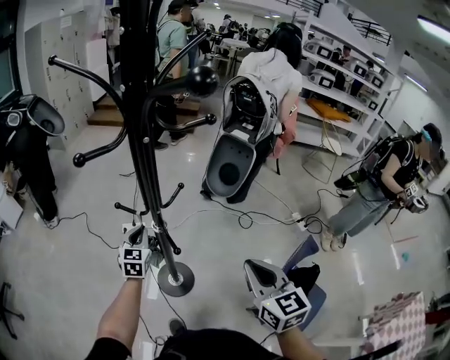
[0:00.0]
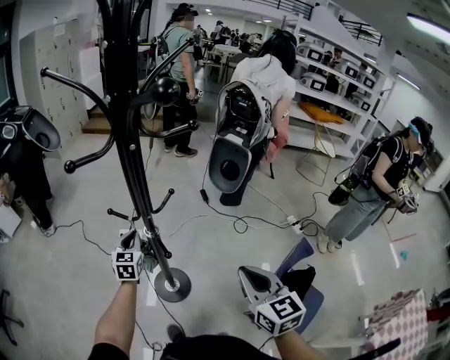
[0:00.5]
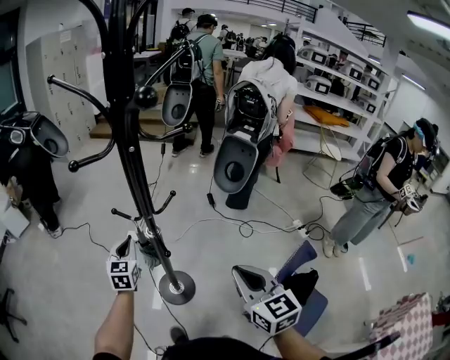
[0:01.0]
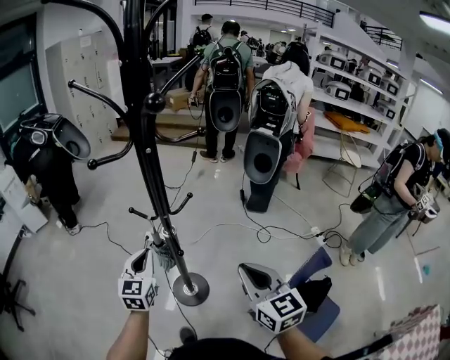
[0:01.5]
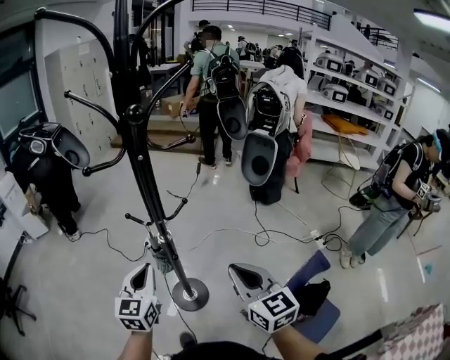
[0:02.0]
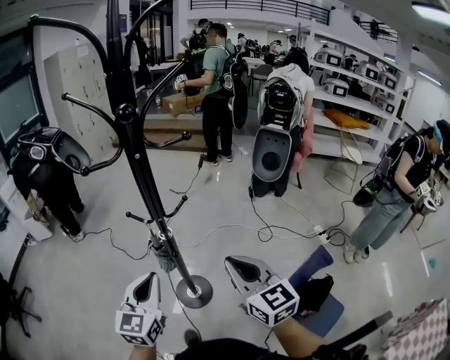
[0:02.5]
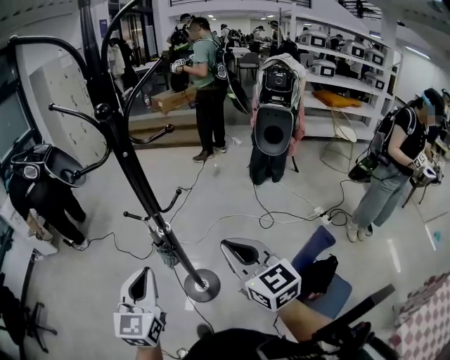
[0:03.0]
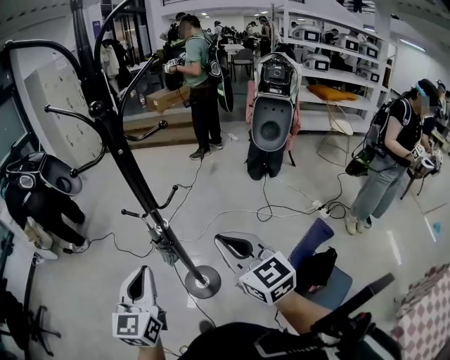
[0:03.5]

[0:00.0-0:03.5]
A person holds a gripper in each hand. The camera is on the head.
0:00.0 to 0:02.0: The left gripper goes roughly 20 cm backward and upward.
0:02.0 to 0:03.5: The left gripper moves upward and backward, some 10 cm, while the right gripper moves upward, roughly 5 cm.

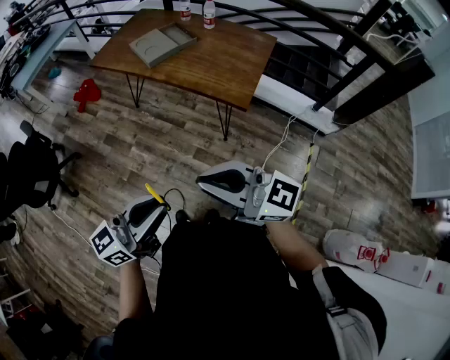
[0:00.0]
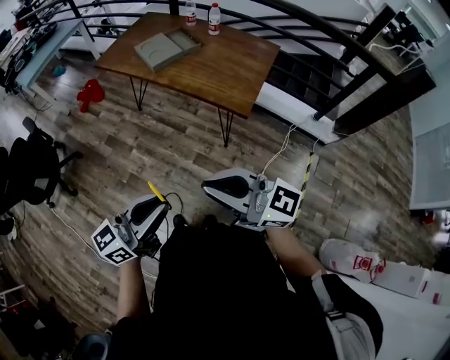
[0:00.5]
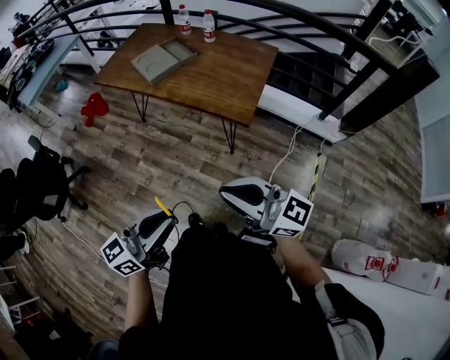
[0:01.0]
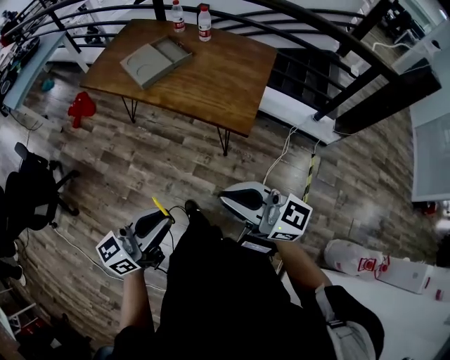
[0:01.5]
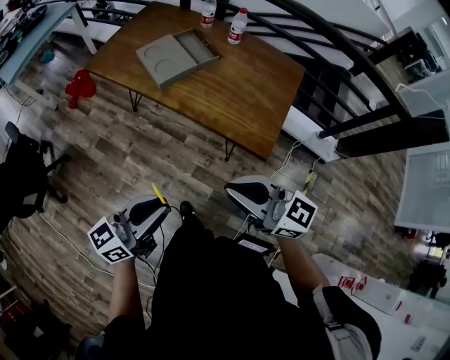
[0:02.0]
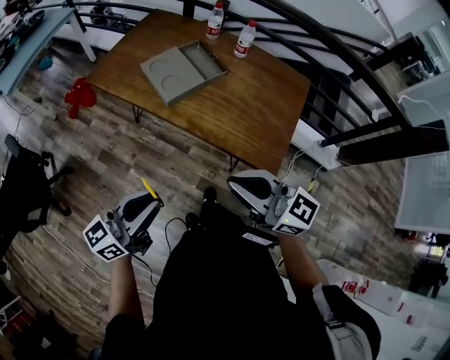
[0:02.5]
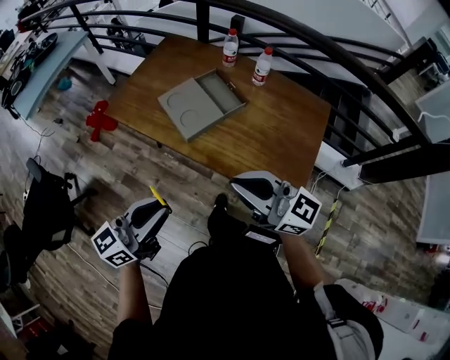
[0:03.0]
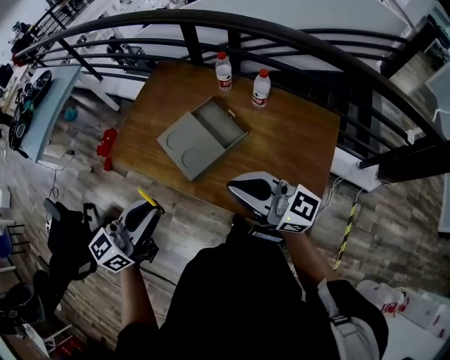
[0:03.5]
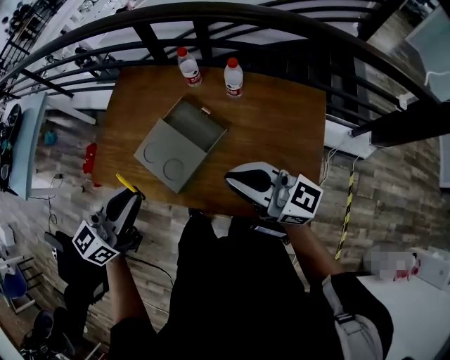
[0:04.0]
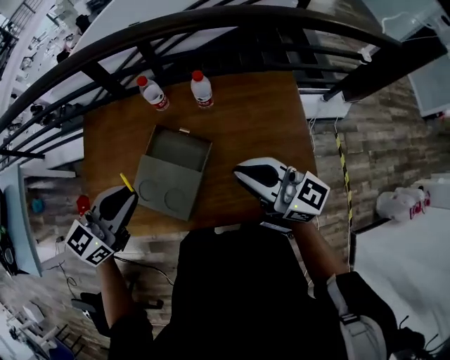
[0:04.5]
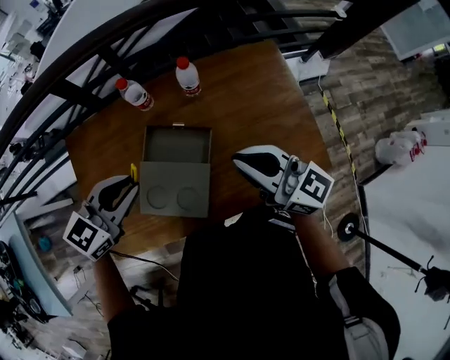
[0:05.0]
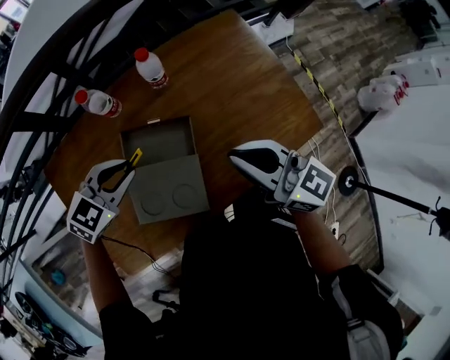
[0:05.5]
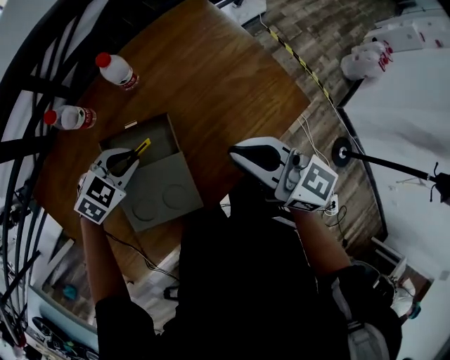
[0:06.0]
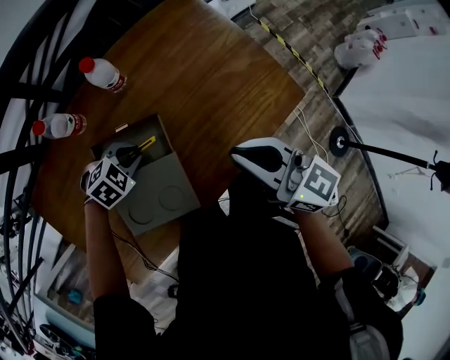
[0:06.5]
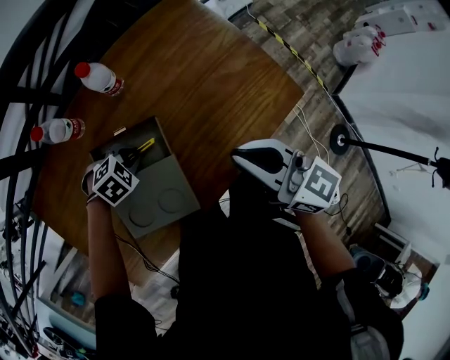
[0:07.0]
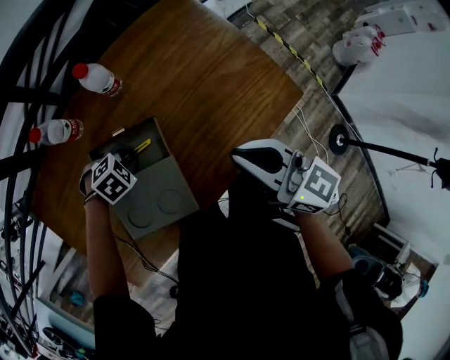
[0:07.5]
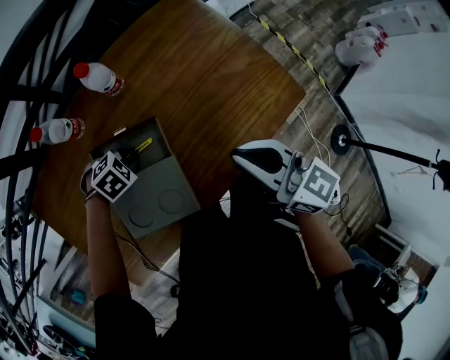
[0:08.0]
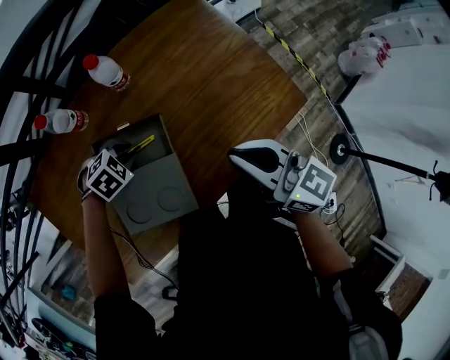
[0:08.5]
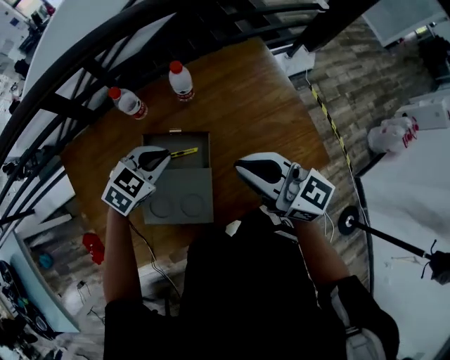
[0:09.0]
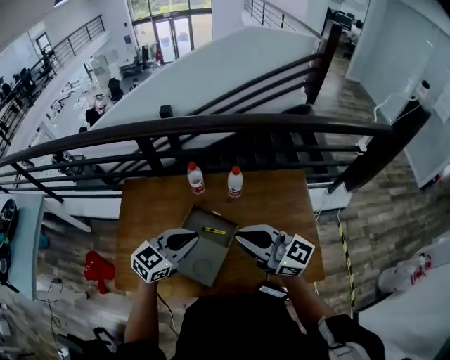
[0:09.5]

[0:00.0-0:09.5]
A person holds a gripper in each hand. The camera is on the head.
0:00.0 to 0:02.0: The grippers both shift forward by approximately 25 cm.
0:02.0 to 0:04.0: The pair of grippers is taken forward, about 40 cm.
0:04.0 to 0:05.5: The right gripper shifts by roughly 10 cm, and swivels roughly 50 degrees, while the left gripper moves about 30 cm, and tips its fingers downward by some 40 degrees.
0:05.5 to 0:07.5: The right gripper changes place by approximately 10 cm, while the left gripper is displaced downward by roughly 20 cm, and tilts its fingers about 30 degrees downward.
0:07.5 to 0:09.5: The right gripper goes roughly 15 cm upward, and rotates approximately 50 degrees, while the left gripper is displaced upward by roughly 30 cm, and tilts its fingers some 60 degrees upward.

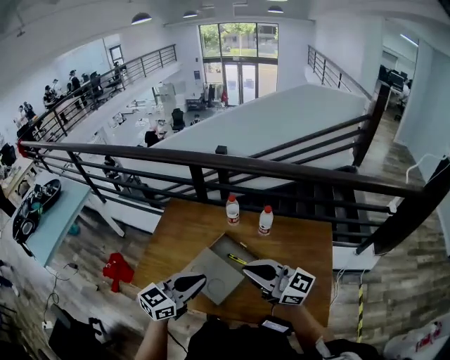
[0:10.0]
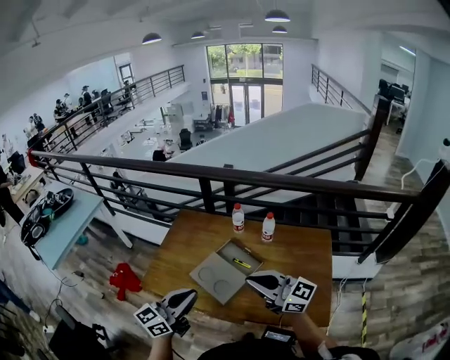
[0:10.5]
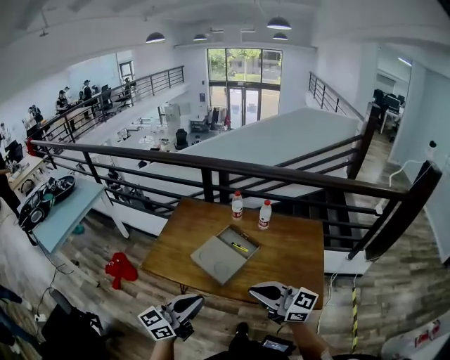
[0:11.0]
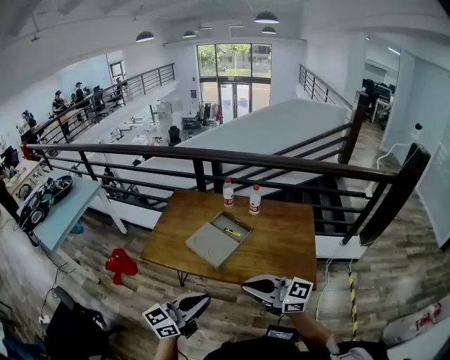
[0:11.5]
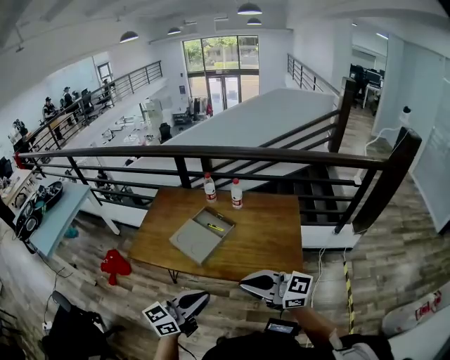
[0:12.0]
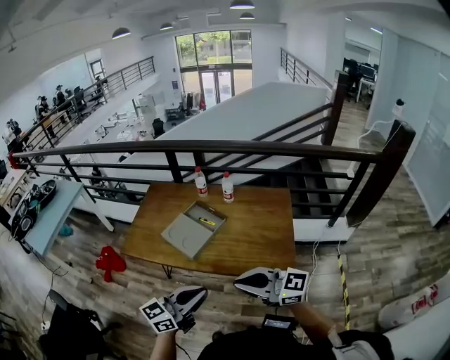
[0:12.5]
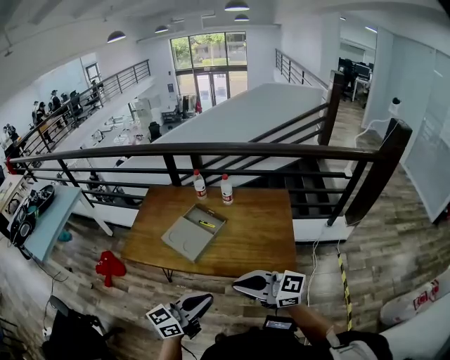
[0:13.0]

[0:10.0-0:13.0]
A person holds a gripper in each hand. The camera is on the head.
0:10.0 to 0:11.5: The grippers both shift backward by approximately 30 cm.
0:11.5 to 0:13.0: The left gripper changes place by about 10 cm; the right gripper moves some 10 cm.

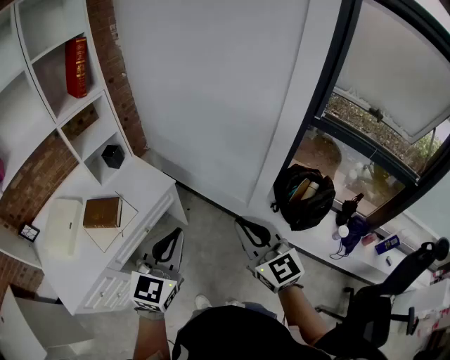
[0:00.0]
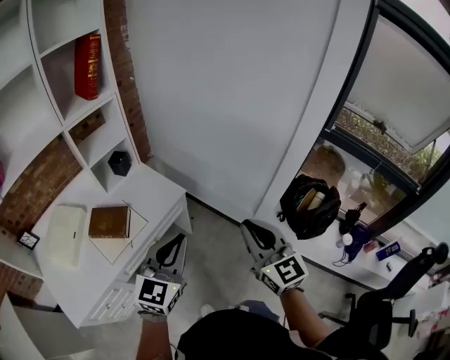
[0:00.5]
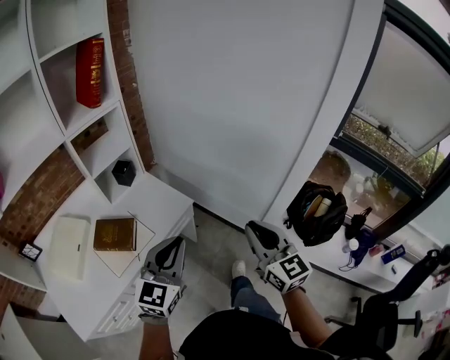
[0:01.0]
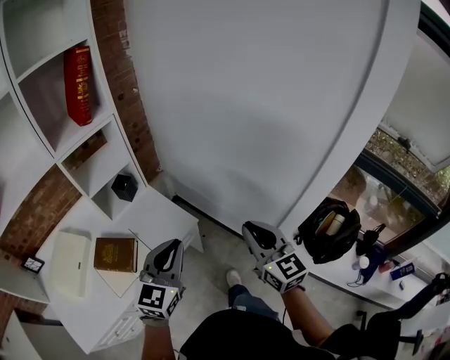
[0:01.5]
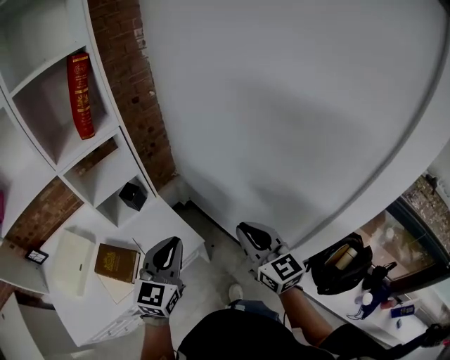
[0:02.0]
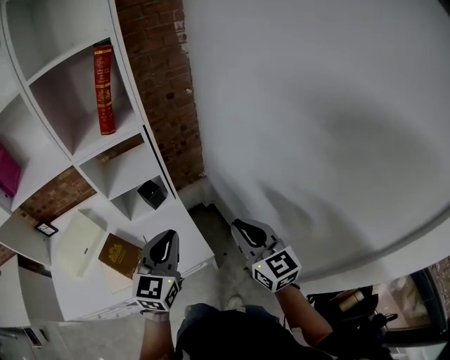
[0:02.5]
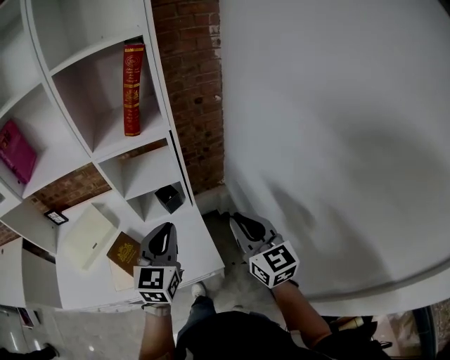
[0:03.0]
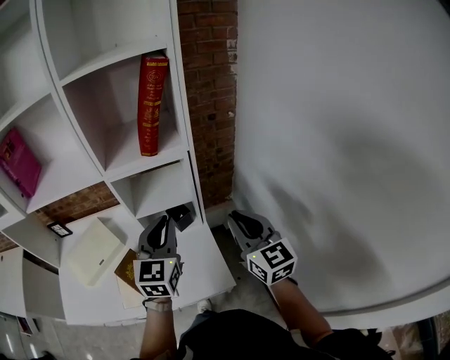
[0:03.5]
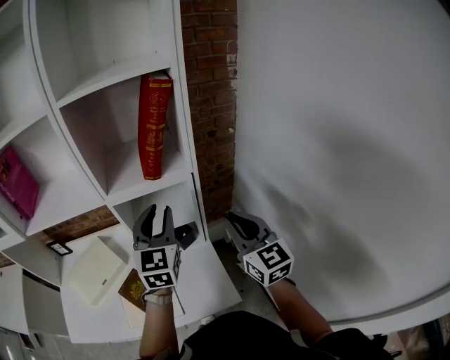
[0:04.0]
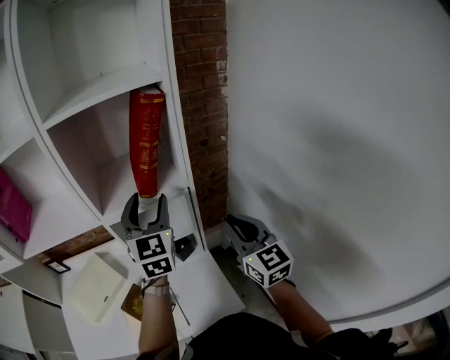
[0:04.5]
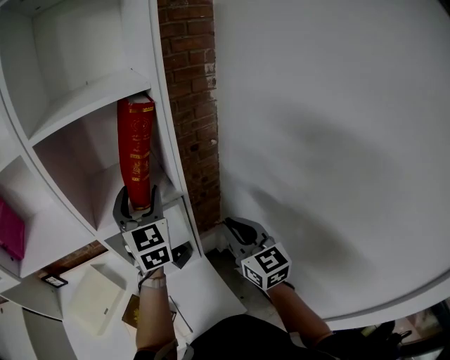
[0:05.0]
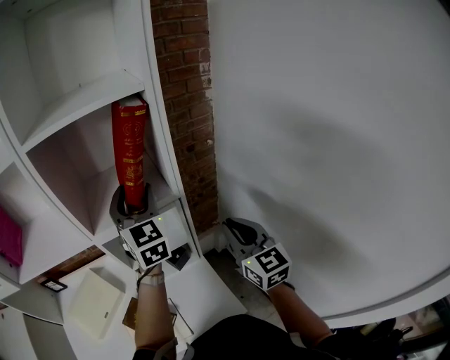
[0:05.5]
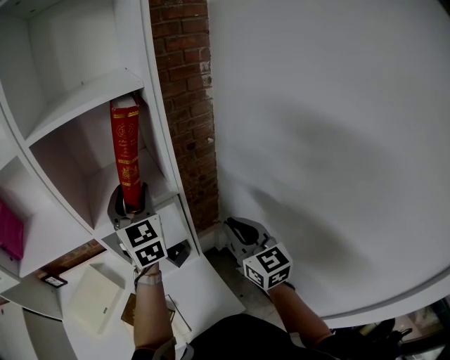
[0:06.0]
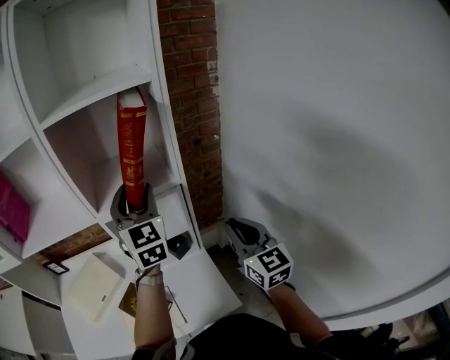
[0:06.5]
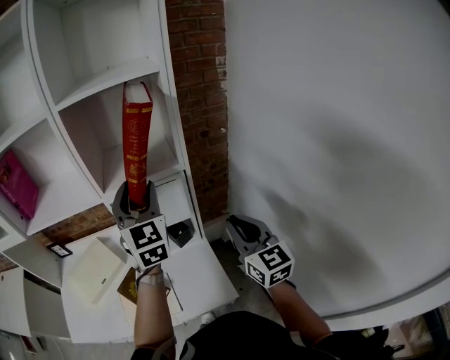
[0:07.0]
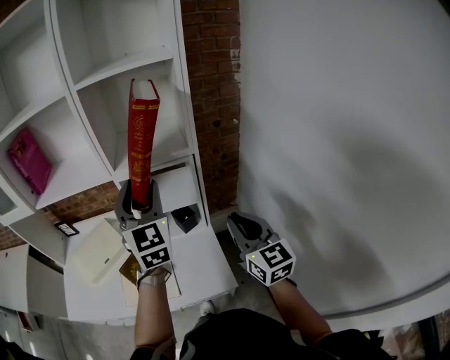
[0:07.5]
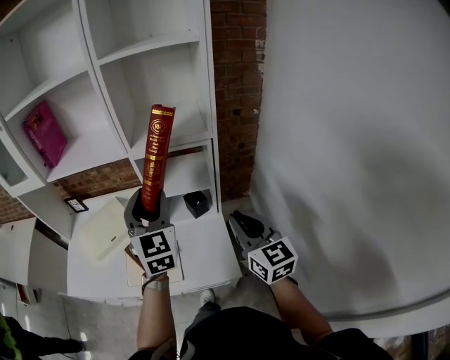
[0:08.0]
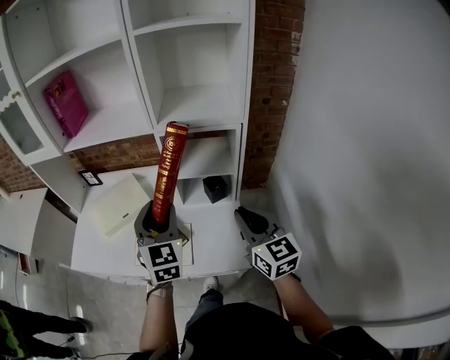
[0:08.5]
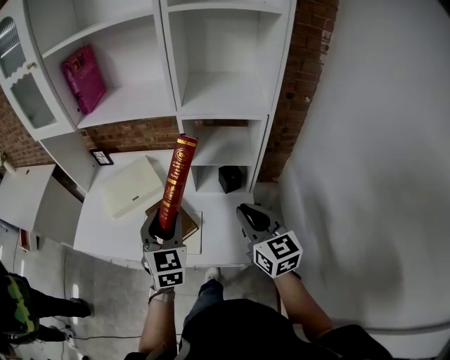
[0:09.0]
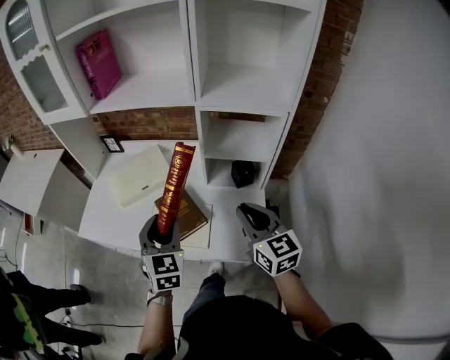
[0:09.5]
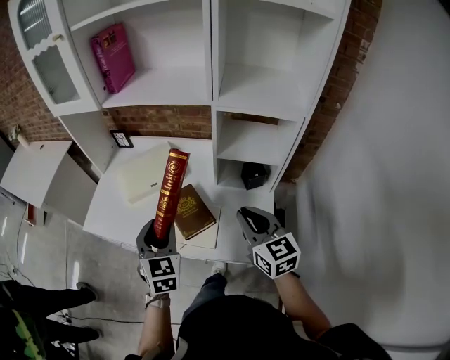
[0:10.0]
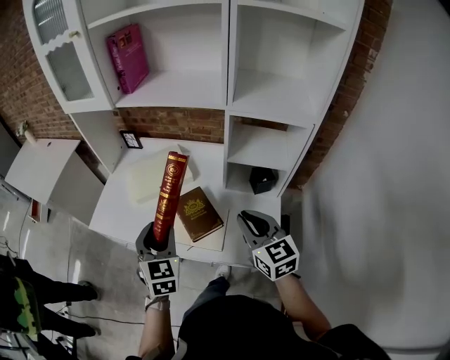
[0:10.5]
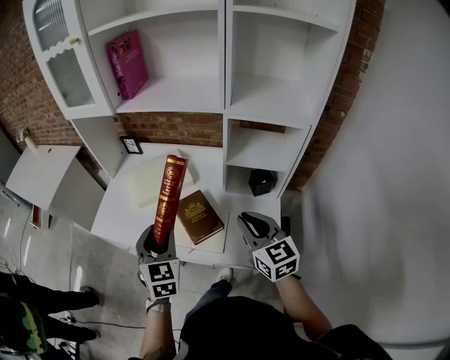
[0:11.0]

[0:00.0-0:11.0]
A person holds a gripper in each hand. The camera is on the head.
0:00.0 to 0:02.0: The grippers both shift forward by roughly 35 cm.
0:02.0 to 0:03.5: The right gripper changes place by some 30 cm, and turns by approximately 20 degrees, while the left gripper shifts by some 25 cm, and changes its angle by about 40 degrees.
0:03.5 to 0:05.5: The left gripper shifts approximately 25 cm forward and upward, turns by about 20 degrees, and opens. Meanwhile the right gripper travels forward by about 10 cm.
0:05.5 to 0:07.5: Both grippers move backward, roughly 15 cm.
0:07.5 to 0:09.0: The right gripper goes some 15 cm to the left and downward; the left gripper shifts approximately 25 cm downward, to the left and backward, and changes its angle by roughly 20 degrees.
0:09.0 to 0:11.0: Both grippers move to the left, roughly 10 cm.
